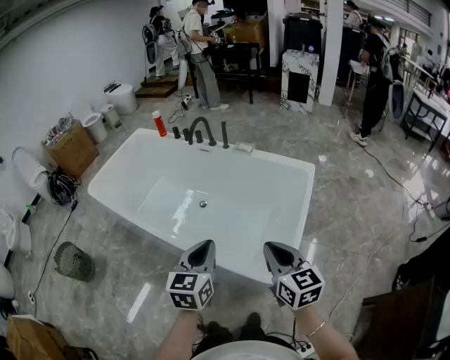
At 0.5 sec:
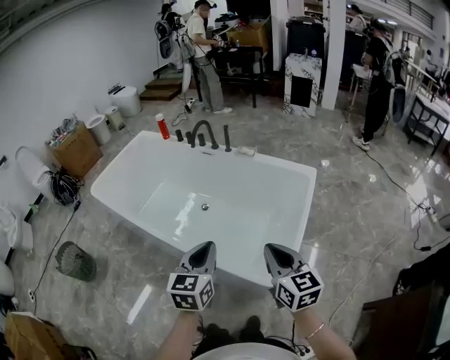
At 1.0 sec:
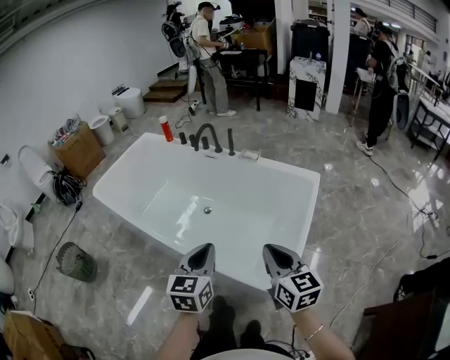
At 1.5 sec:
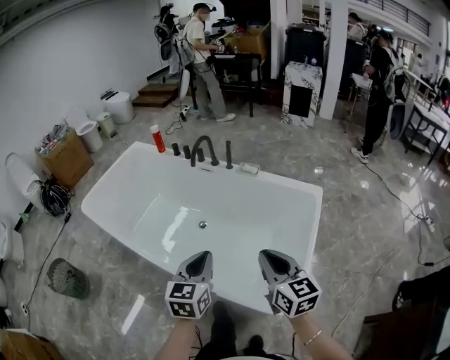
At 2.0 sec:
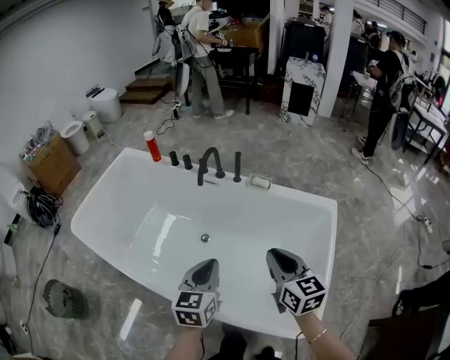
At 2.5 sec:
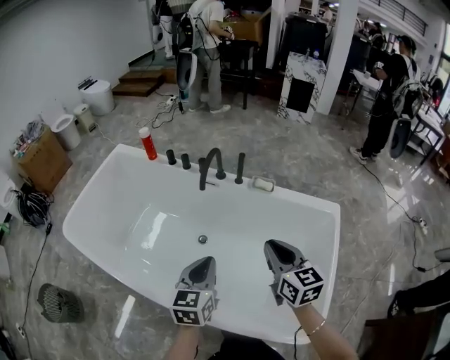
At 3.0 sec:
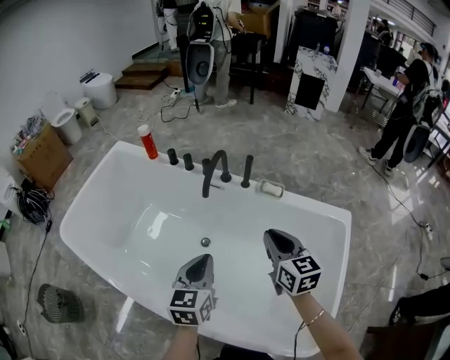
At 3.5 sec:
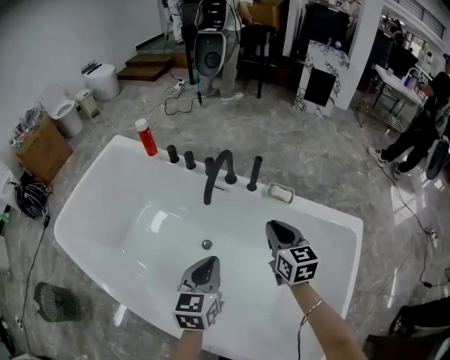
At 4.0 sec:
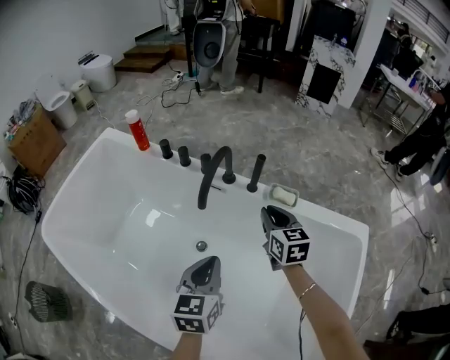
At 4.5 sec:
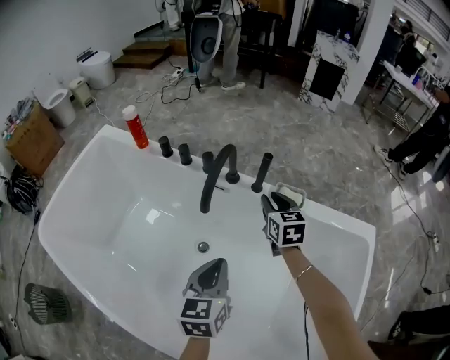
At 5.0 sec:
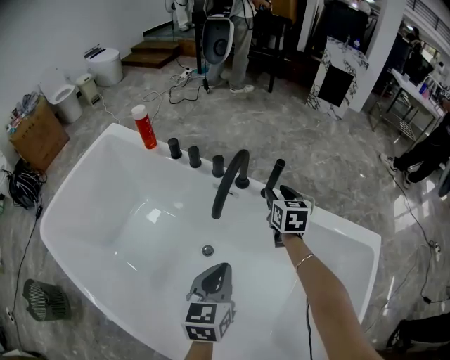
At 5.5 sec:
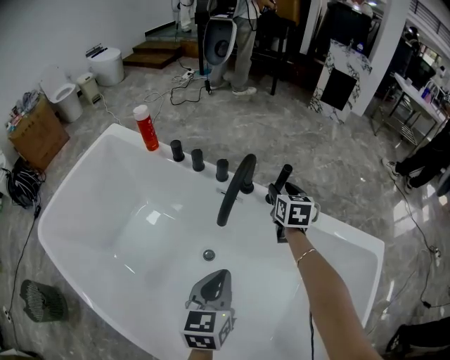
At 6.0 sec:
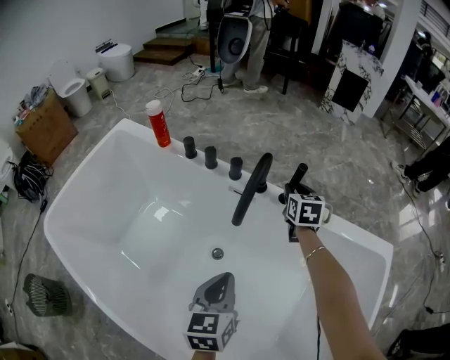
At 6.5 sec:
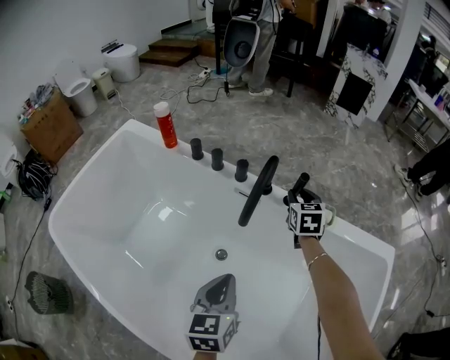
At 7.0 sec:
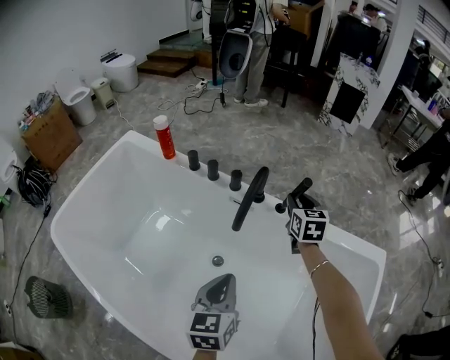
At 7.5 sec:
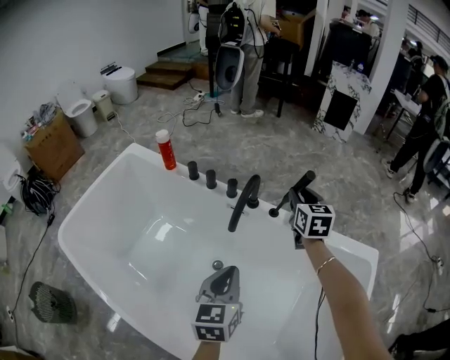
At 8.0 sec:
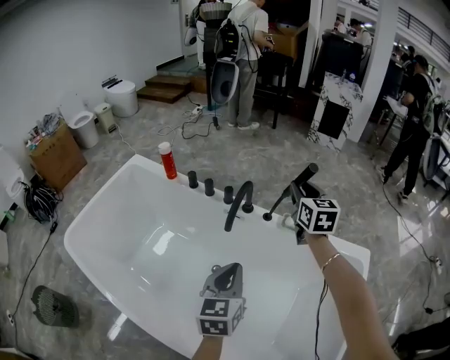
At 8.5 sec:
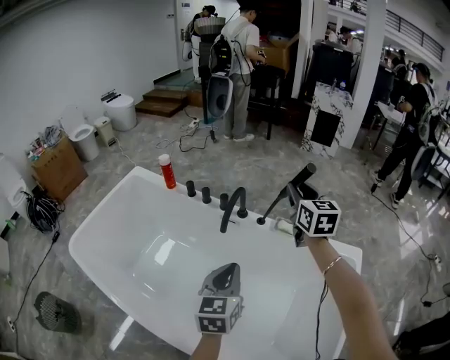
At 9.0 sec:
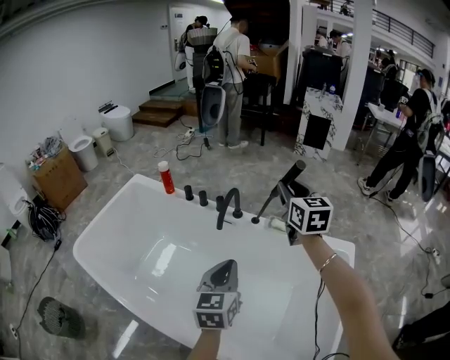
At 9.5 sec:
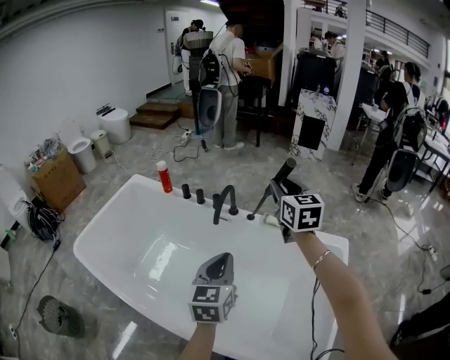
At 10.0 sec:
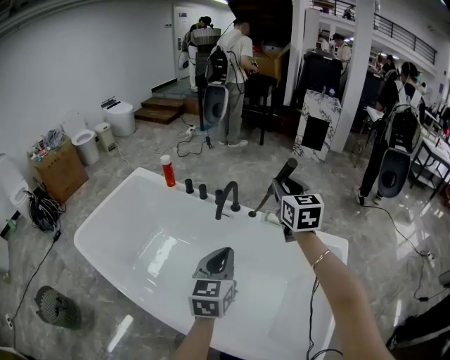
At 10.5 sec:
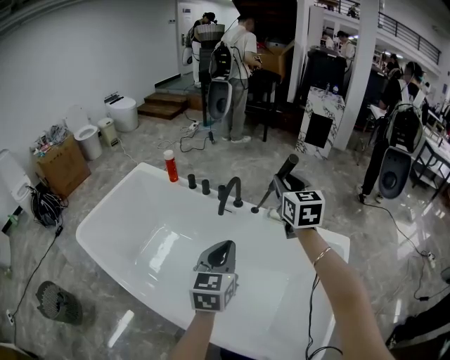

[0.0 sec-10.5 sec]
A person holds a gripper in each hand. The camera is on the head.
0.0 sec to 2.0 sec: The two grippers go about 40 cm forward.
2.0 sec to 4.0 sec: The grippers both shift forward and downward by approximately 40 cm.
4.0 sec to 6.5 sec: The right gripper goes roughly 20 cm forward and downward, and opens and closes again. Meanwhile the left gripper moves to the left and downward, approximately 10 cm.
6.5 sec to 8.5 sec: The right gripper goes approximately 40 cm upward and backward, and changes its angle by about 20 degrees. The left gripper is displaced upward and backward by roughly 25 cm.
8.5 sec to 10.5 sec: The grippers both shift backward and upward by about 15 cm.

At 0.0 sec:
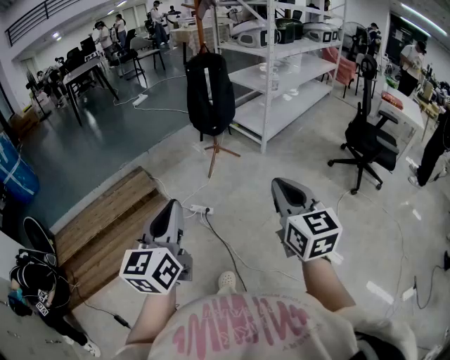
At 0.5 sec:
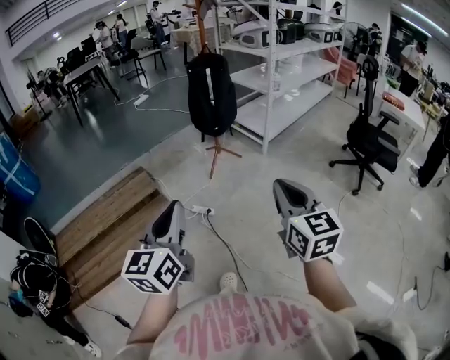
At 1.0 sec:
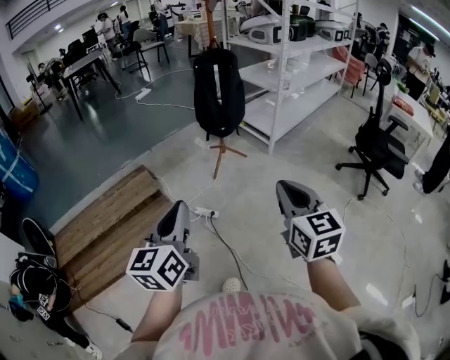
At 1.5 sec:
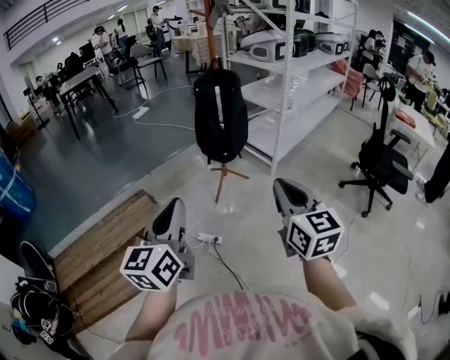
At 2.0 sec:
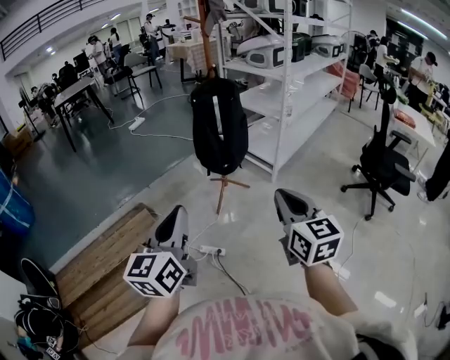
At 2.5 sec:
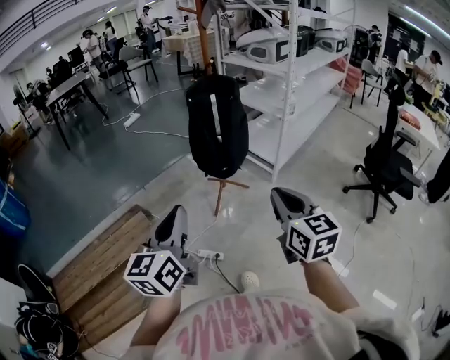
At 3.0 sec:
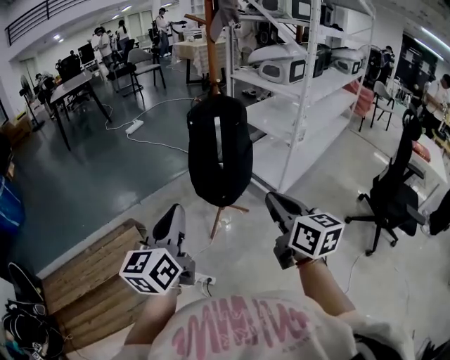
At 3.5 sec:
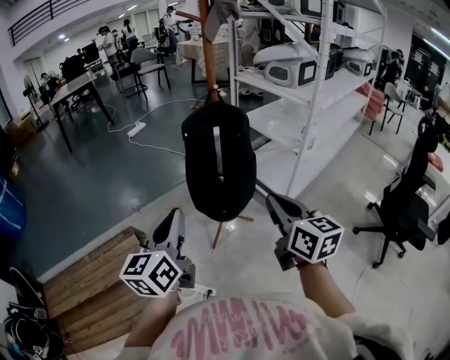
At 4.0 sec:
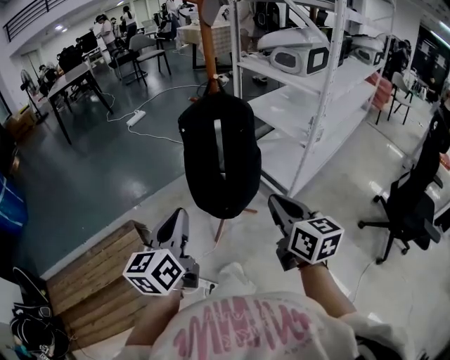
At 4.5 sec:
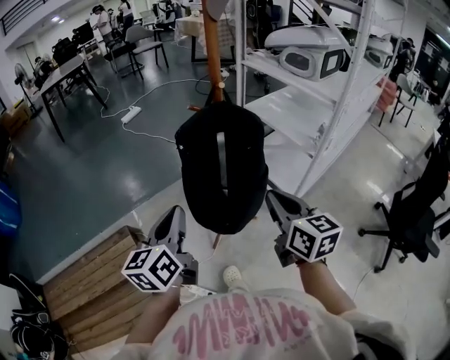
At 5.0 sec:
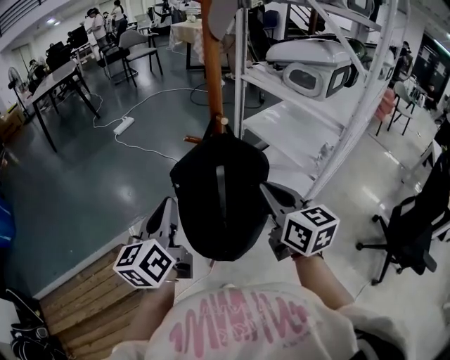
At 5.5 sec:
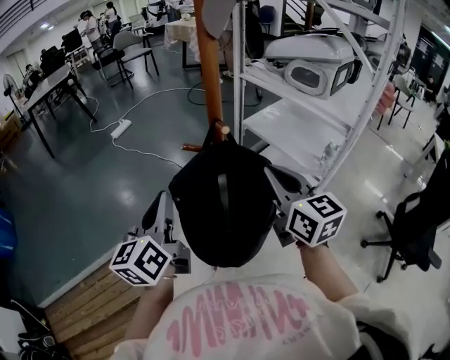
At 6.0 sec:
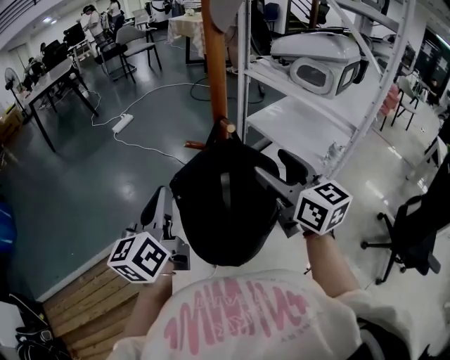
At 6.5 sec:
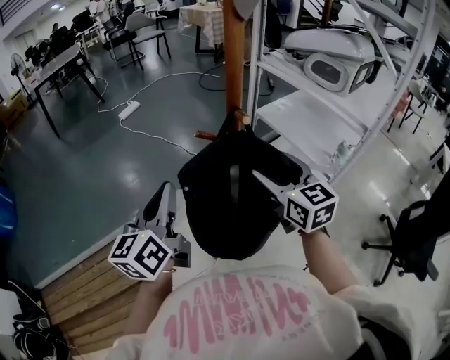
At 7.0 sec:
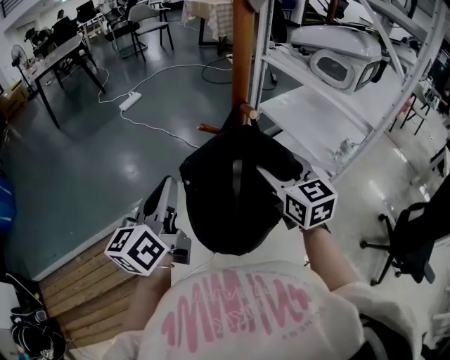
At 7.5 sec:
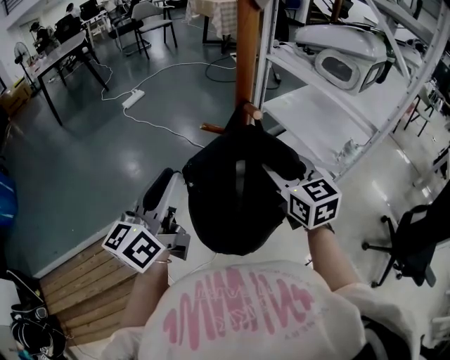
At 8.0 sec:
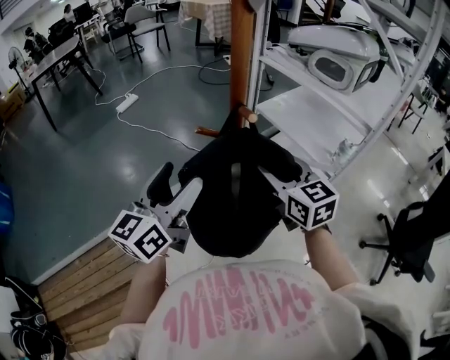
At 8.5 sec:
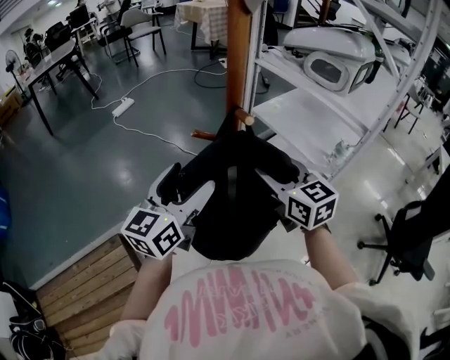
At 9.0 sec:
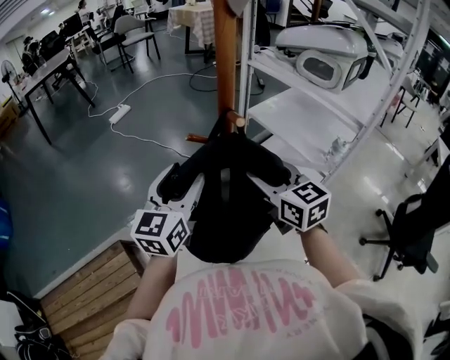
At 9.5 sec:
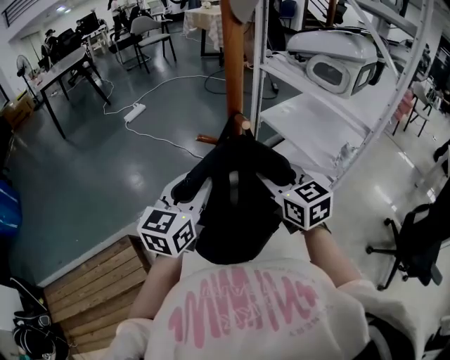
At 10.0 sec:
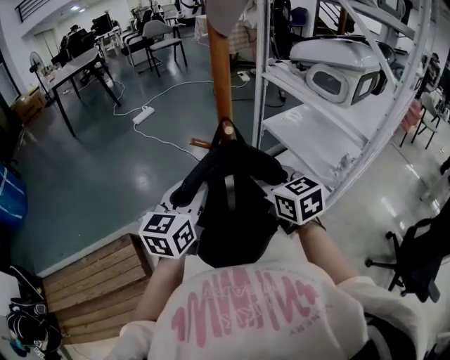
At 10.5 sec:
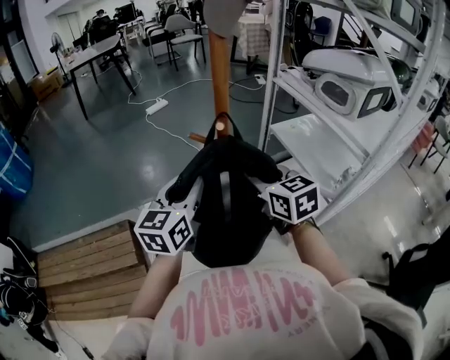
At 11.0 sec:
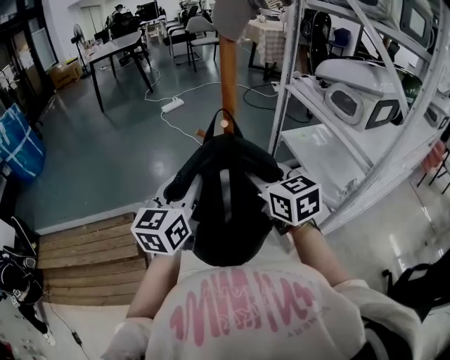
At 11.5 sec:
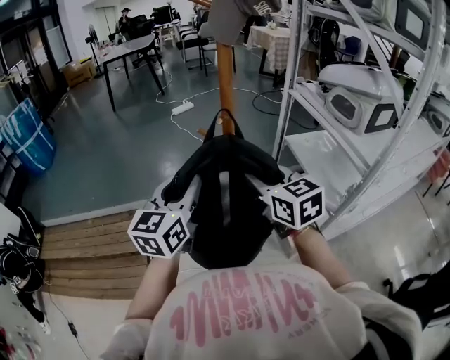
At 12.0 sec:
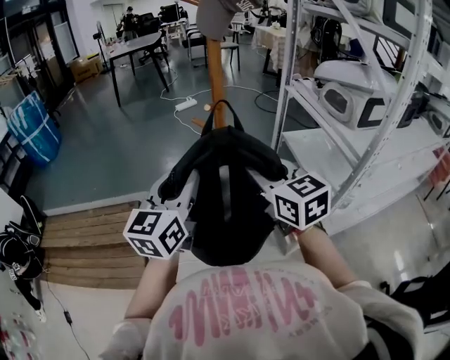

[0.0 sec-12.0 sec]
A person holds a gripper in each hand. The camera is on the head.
0.0 sec to 2.0 sec: The two grippers go some 25 cm forward.
2.0 sec to 4.0 sec: The grippers both shift forward by about 40 cm.
4.0 sec to 6.0 sec: Both grippers travel together forward, some 30 cm. The right gripper opens.
6.0 sec to 8.0 sec: The left gripper opens up; the right gripper goes about 5 cm downward.
8.0 sec to 10.0 sec: The left gripper travels to the right by roughly 5 cm, rotates about 20 degrees, and closes up.
10.0 sec to 12.0 sec: Both grippers travel together backward and upward, some 15 cm. The right gripper rotates about 20 degrees, while the left gripper swivels about 20 degrees.

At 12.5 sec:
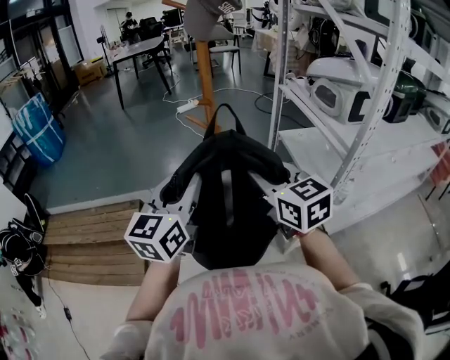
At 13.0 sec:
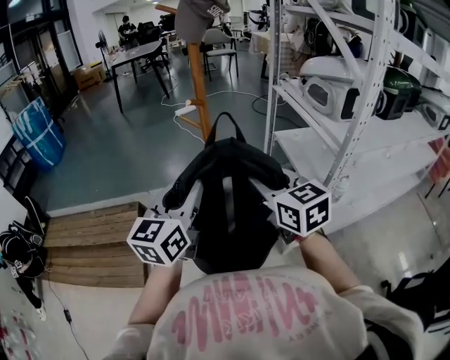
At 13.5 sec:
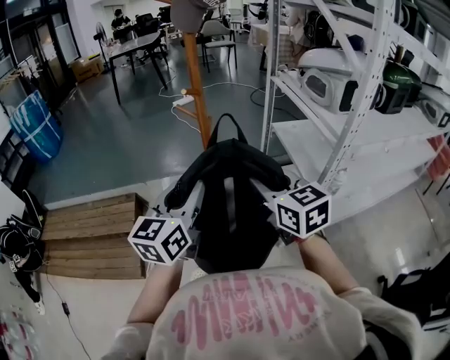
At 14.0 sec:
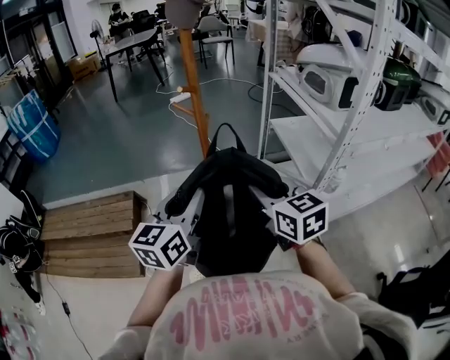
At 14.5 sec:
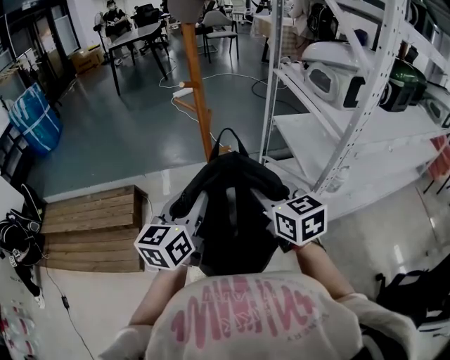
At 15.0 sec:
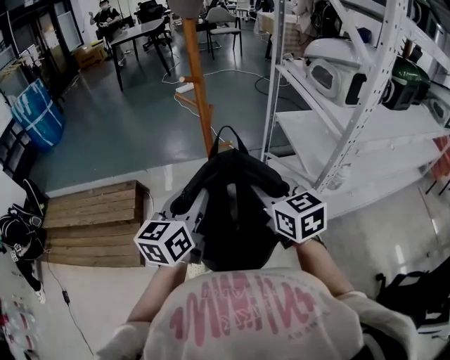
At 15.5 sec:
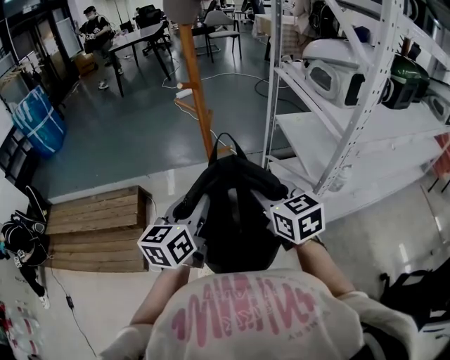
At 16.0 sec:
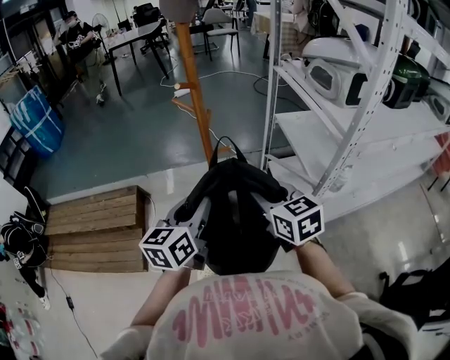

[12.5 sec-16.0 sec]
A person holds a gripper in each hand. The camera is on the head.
12.5 sec to 14.5 sec: The two grippers go about 10 cm downward.
14.5 sec to 16.0 sec: The grippers stay close to where they were, moving slightly.

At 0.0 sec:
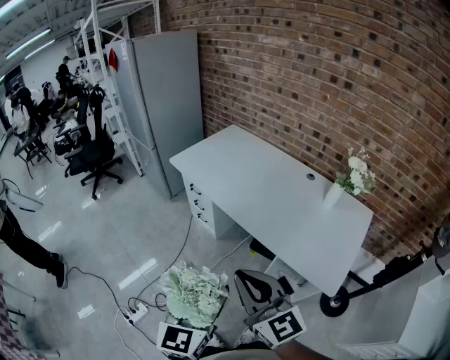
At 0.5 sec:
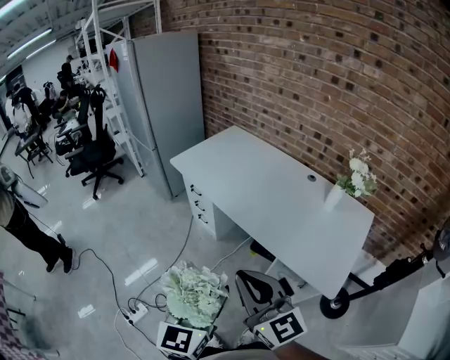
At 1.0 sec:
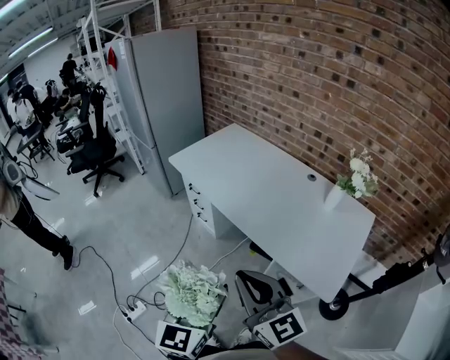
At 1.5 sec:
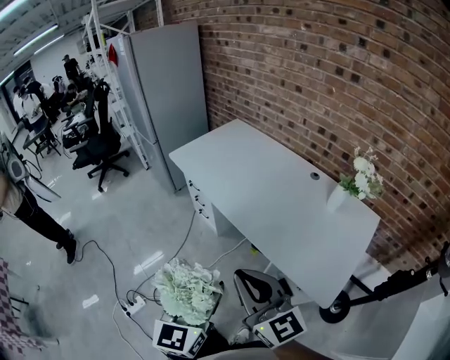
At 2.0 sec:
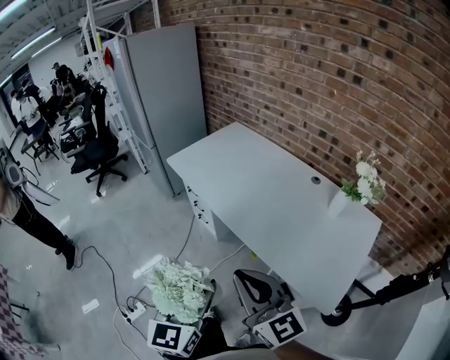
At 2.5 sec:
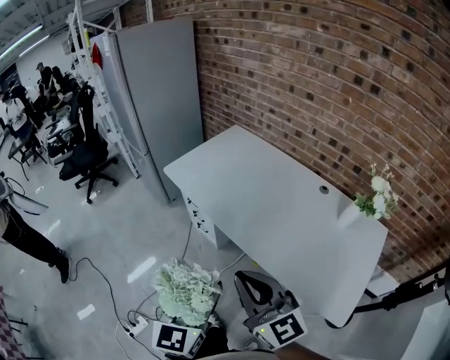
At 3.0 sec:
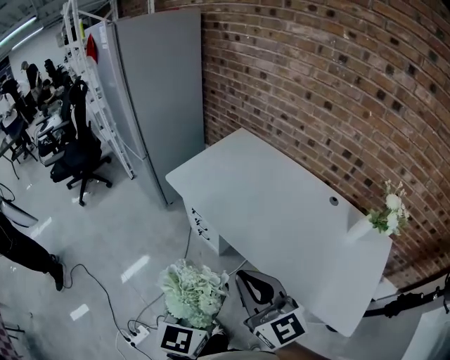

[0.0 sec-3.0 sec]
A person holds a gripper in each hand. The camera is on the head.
0.0 sec to 1.5 sec: Both grippers travel together to the right, roughly 5 cm.
1.5 sec to 3.0 sec: Both grippers move forward, about 25 cm.
